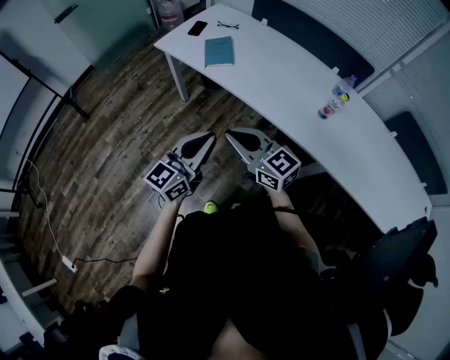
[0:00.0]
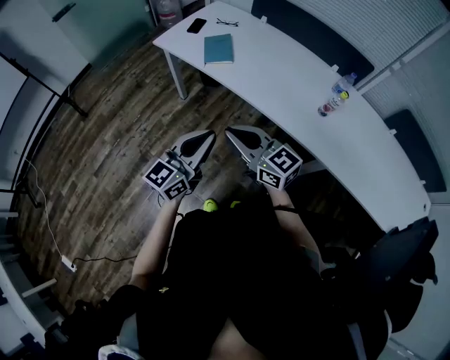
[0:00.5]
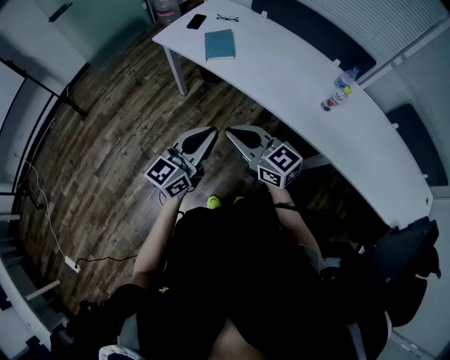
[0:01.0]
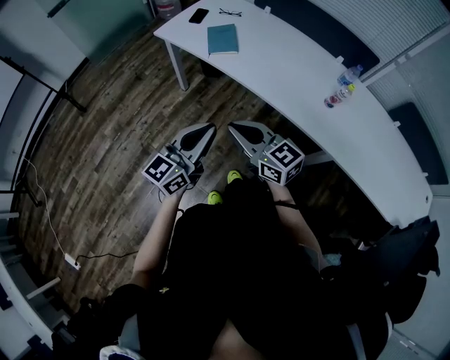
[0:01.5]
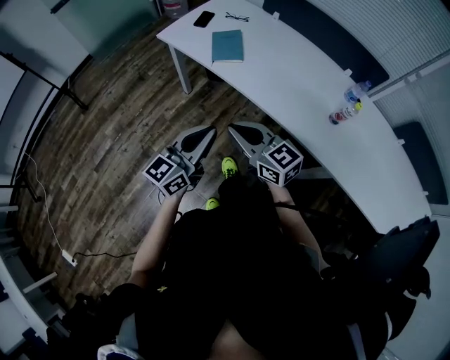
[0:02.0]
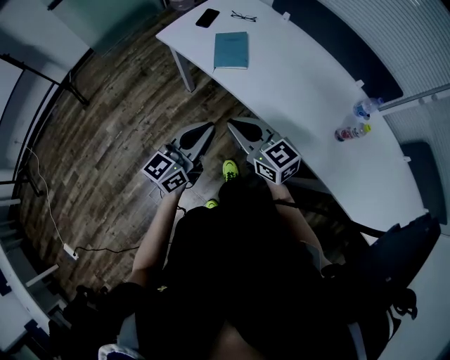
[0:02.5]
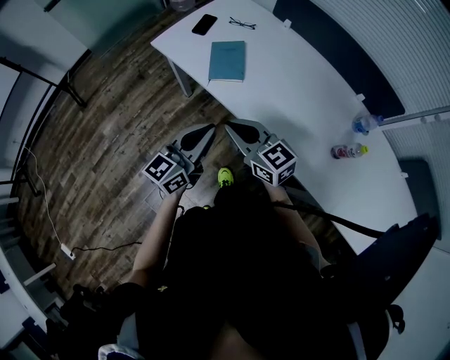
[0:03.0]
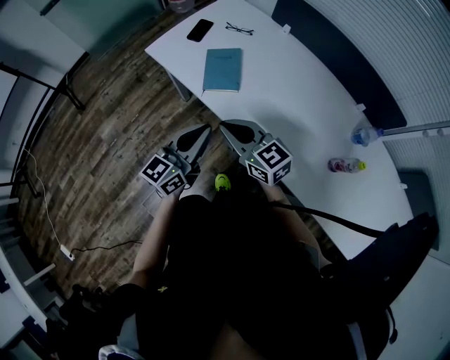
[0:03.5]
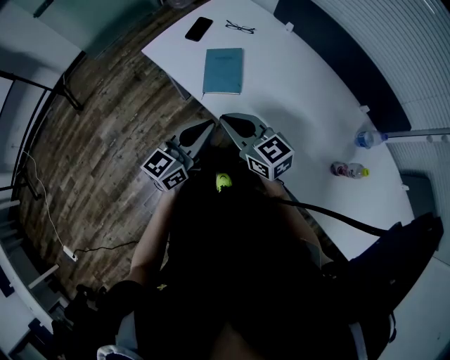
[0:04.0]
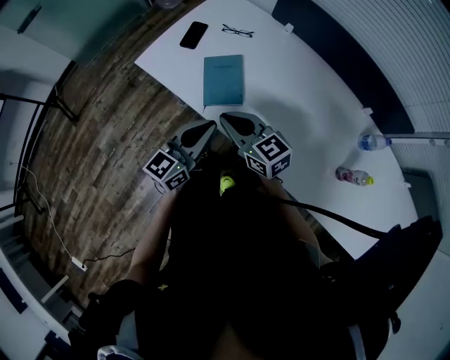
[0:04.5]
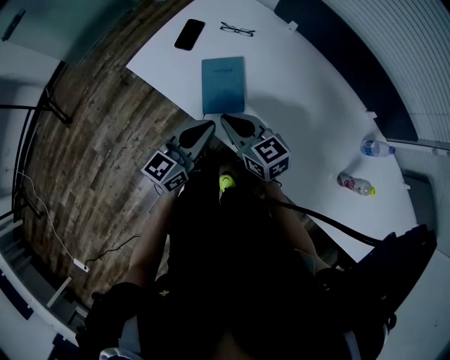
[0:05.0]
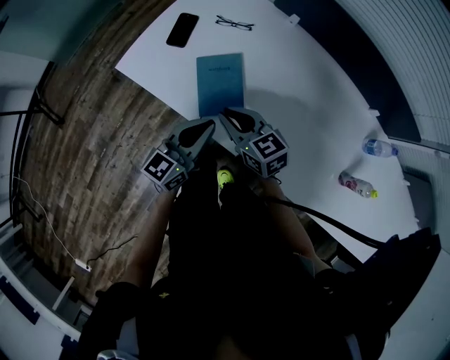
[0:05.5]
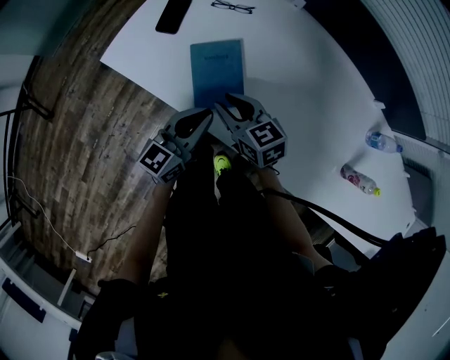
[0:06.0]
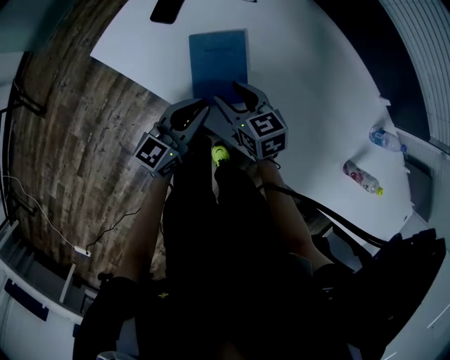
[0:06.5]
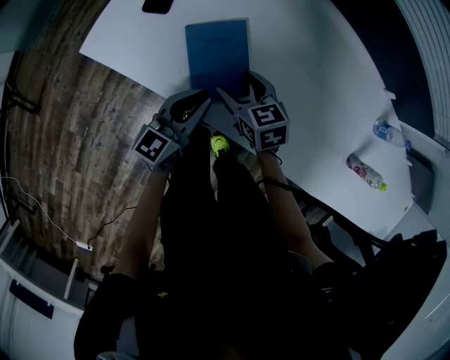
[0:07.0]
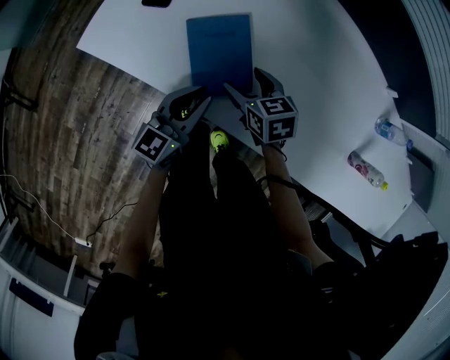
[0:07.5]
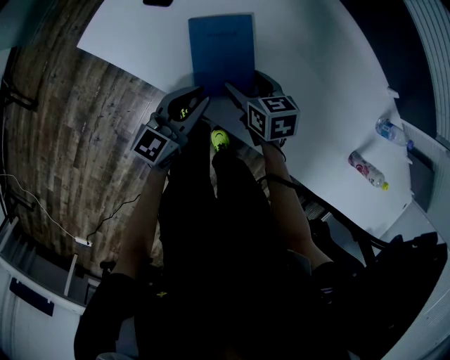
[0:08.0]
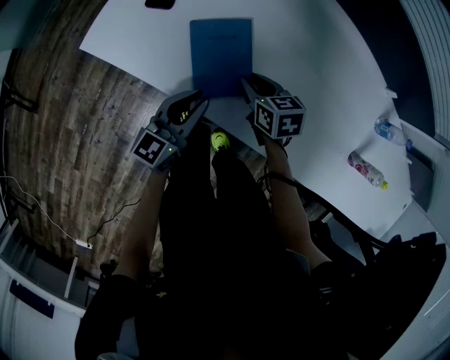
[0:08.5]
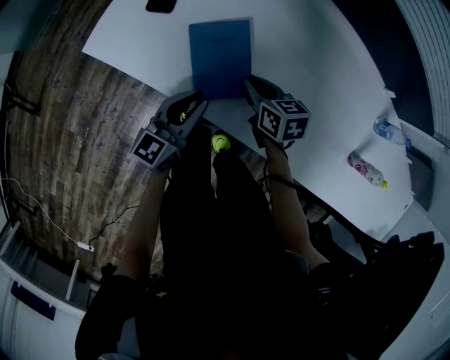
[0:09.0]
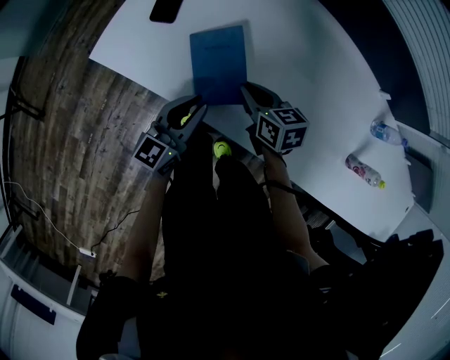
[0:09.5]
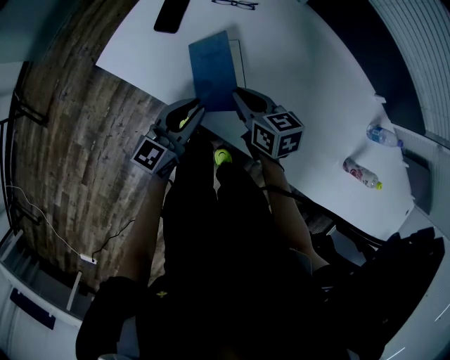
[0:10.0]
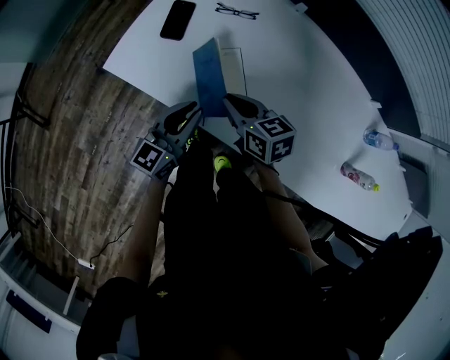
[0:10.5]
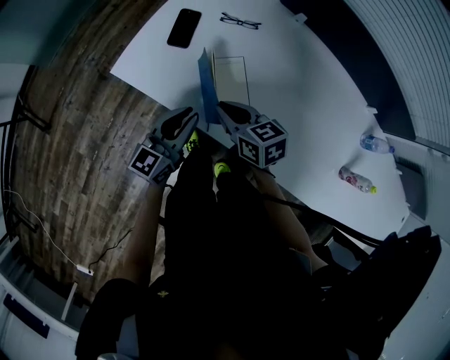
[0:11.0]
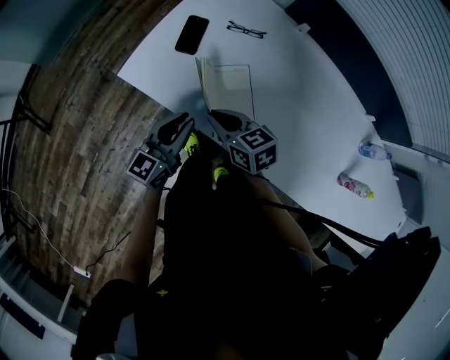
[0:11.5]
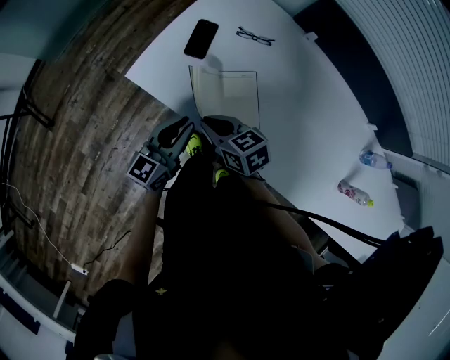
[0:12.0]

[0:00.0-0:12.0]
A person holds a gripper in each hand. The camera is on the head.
0:00.0 to 0:02.0: The two grippers go roughly 5 cm forward.
0:02.0 to 0:04.0: The grippers both shift forward by approximately 25 cm.
0:04.0 to 0:06.0: The two grippers go roughly 20 cm forward and downward. The right gripper rotates about 20 degrees.
0:06.0 to 0:08.0: Both grippers travel together downward, approximately 10 cm. The right gripper rotates some 20 degrees, and opens its fingers.
0:08.0 to 0:10.0: The right gripper goes roughly 10 cm upward, and closes up. Meanwhile the left gripper shifts about 5 cm upward.
0:10.0 to 0:12.0: The right gripper travels to the left by roughly 15 cm; the left gripper is displaced to the left by about 10 cm.

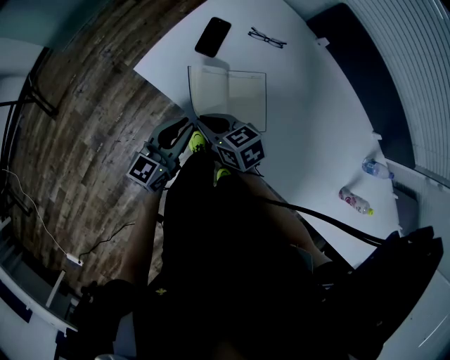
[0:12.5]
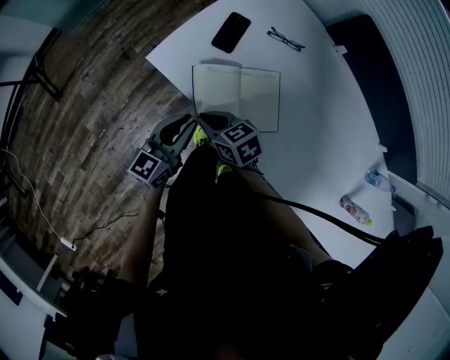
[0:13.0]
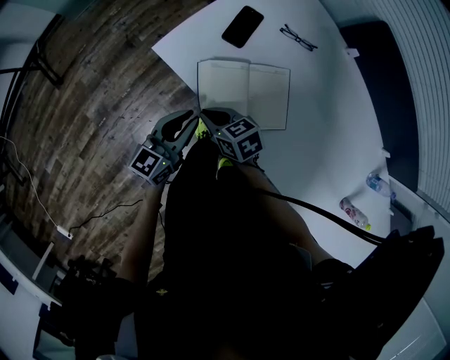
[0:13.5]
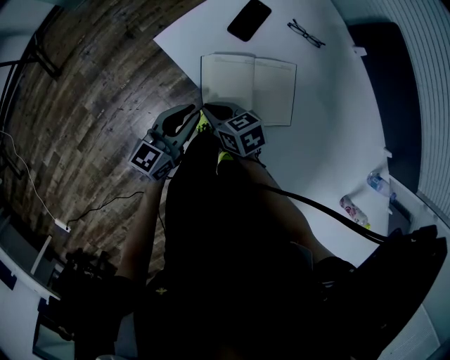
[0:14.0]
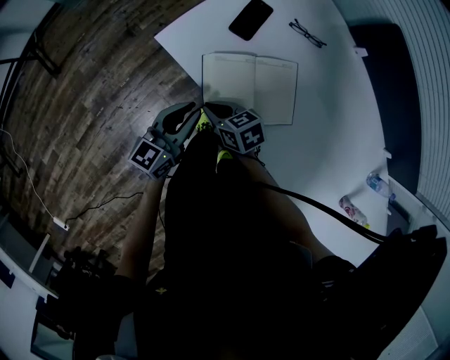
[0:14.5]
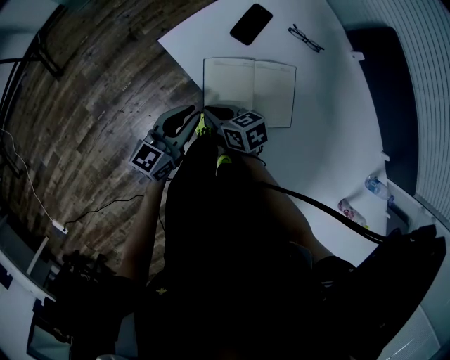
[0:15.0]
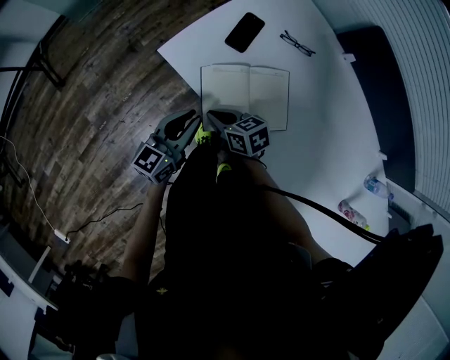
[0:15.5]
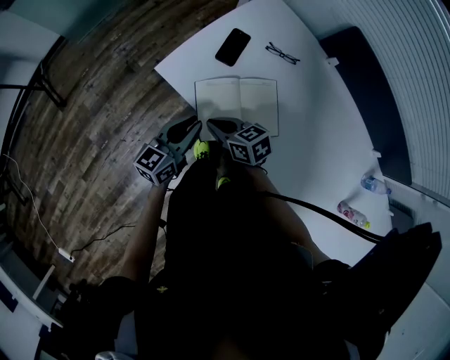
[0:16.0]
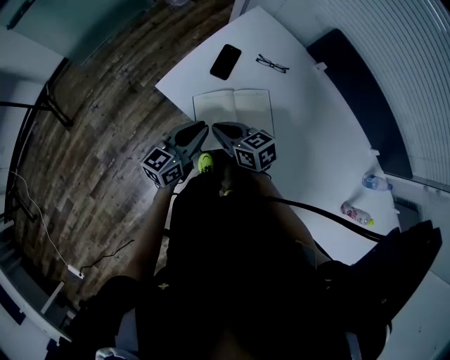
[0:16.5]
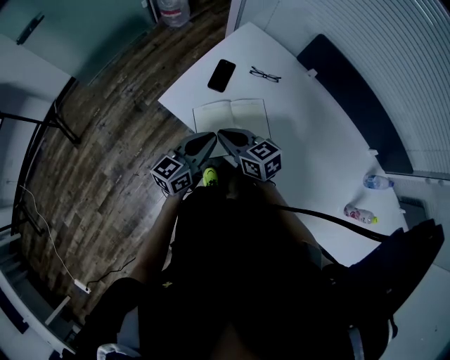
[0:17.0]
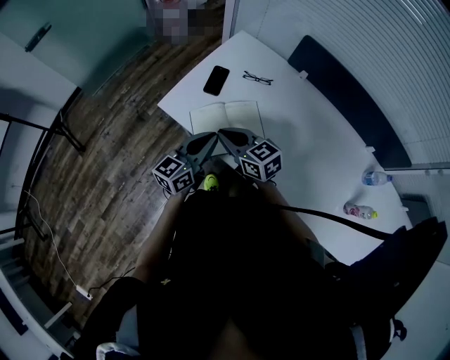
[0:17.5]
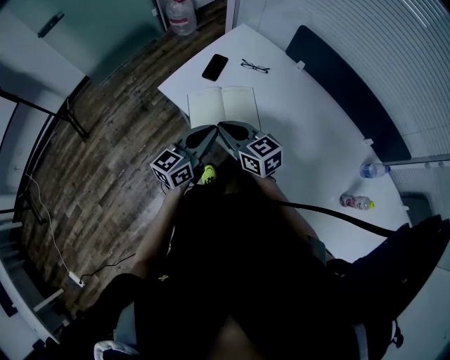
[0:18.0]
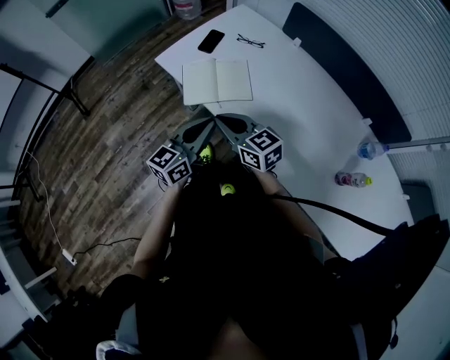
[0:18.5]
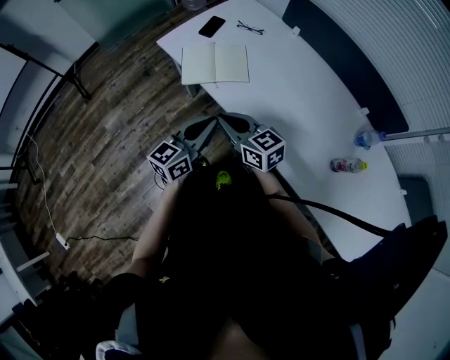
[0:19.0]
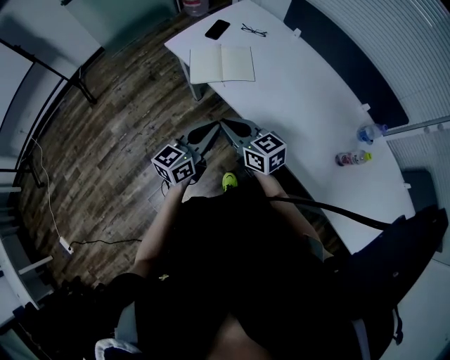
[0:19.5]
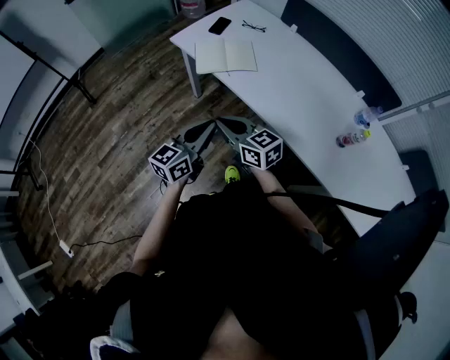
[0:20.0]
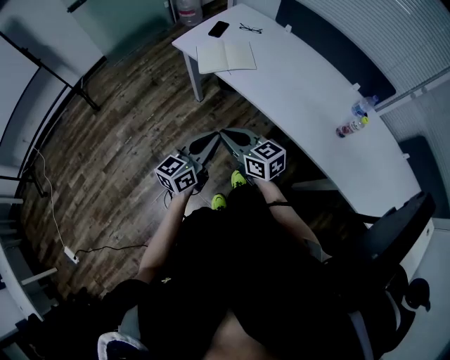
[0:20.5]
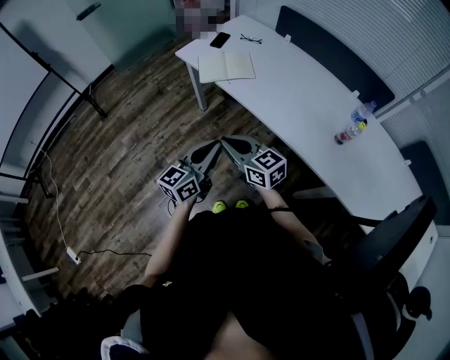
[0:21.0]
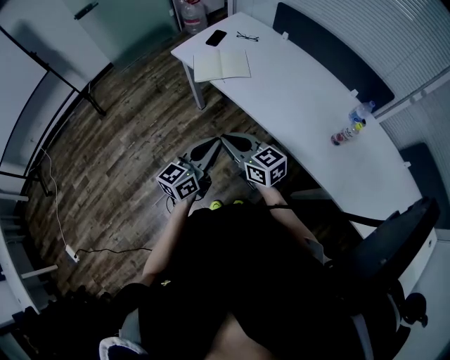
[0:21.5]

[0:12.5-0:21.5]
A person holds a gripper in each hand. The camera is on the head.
0:12.5 to 0:14.5: The left gripper ends up roughly 5 cm from where it was. The right gripper shifts some 10 cm downward.
0:14.5 to 0:17.0: The right gripper is displaced upward by roughly 15 cm, and swivels about 30 degrees, while the left gripper goes some 10 cm upward and to the right.
0:17.0 to 0:19.5: Both grippers travel together backward, roughly 30 cm.
0:19.5 to 0:21.5: Both grippers travel together backward, approximately 15 cm.

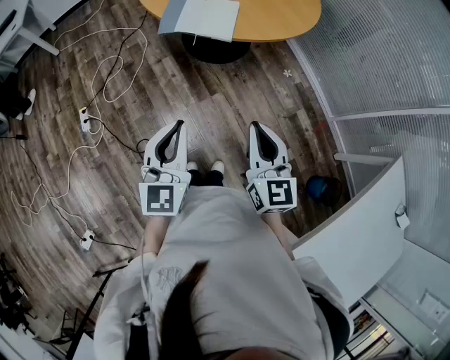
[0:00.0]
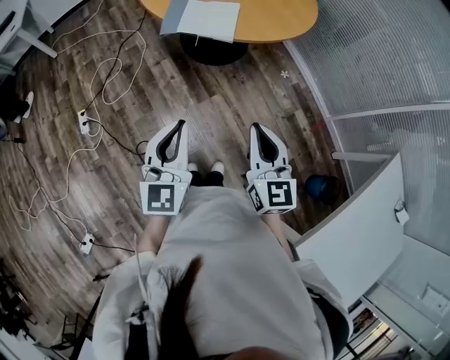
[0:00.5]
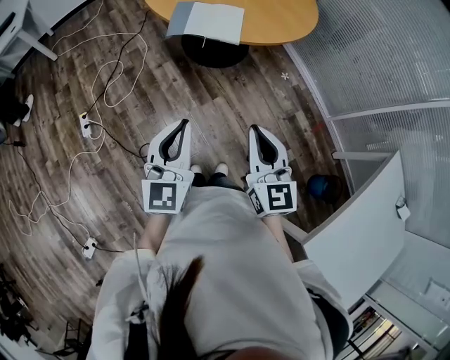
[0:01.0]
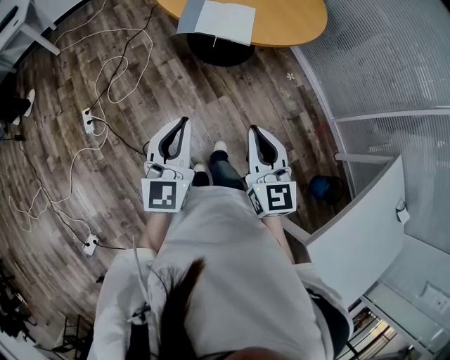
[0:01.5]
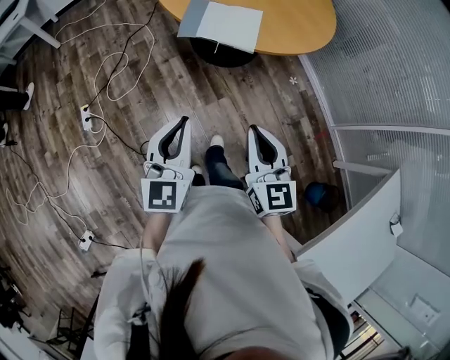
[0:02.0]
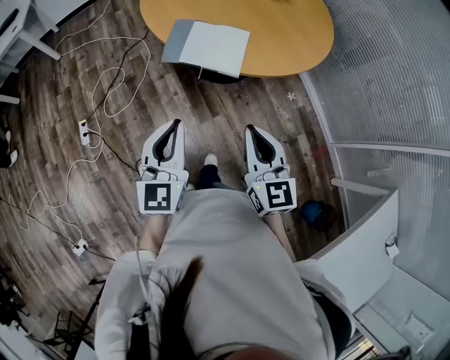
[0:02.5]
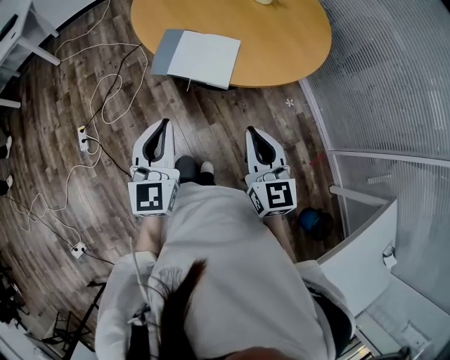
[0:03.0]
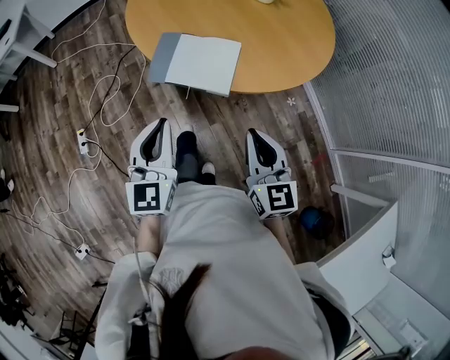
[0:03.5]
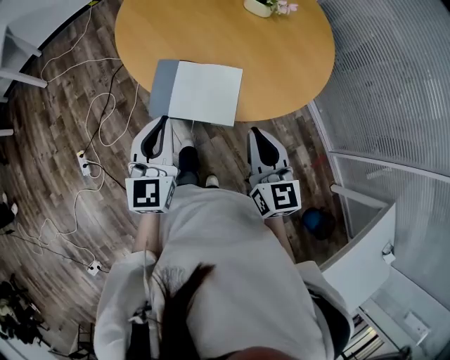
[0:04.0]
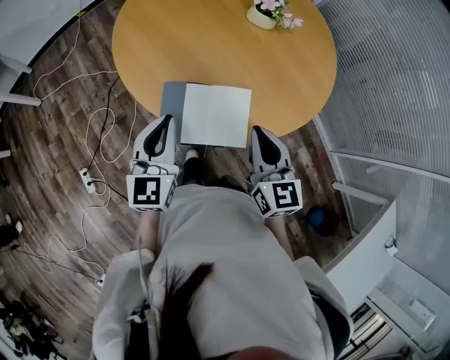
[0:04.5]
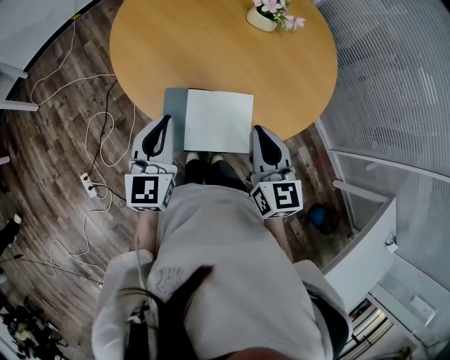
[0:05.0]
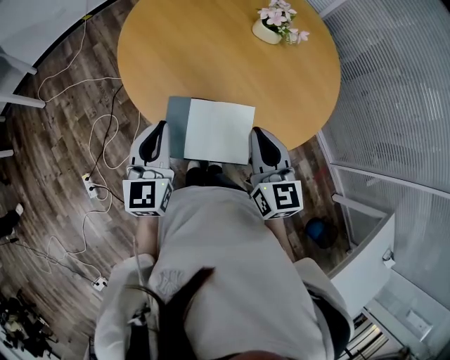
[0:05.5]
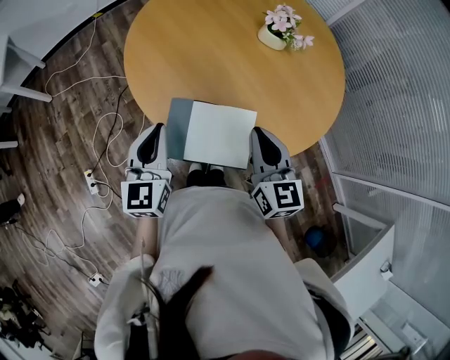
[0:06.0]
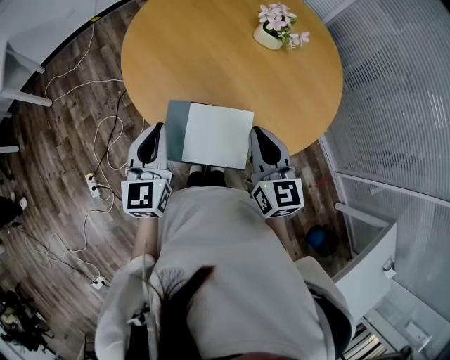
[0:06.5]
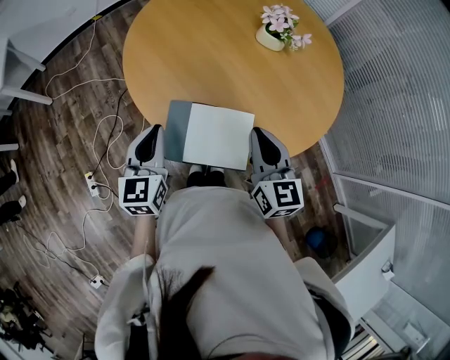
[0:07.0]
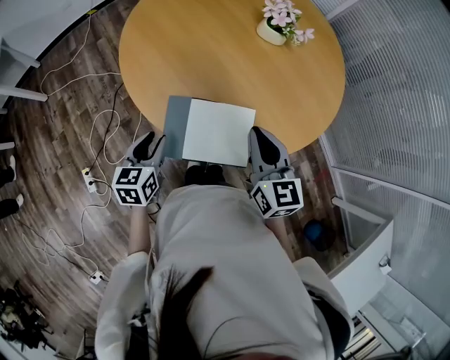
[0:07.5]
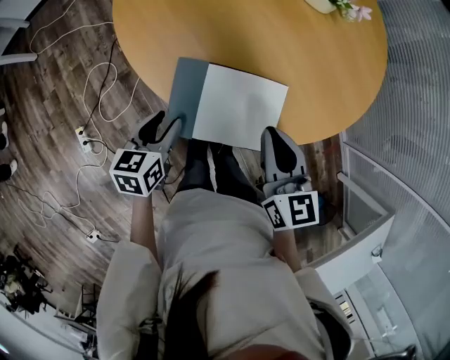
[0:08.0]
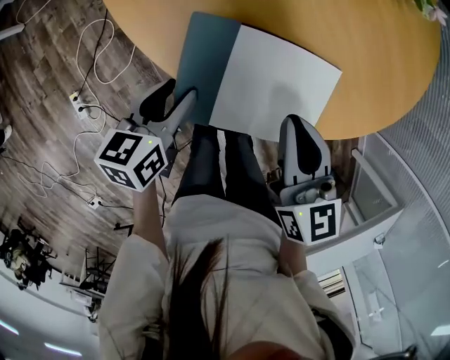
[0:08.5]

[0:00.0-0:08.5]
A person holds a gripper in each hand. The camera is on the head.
0:00.0 to 0:02.0: The right gripper goes some 10 cm to the left. Meanwhile the left gripper goes approximately 10 cm to the left and forward.
0:02.0 to 0:04.0: The two grippers go roughly 30 cm forward.
0:04.0 to 0:06.5: The right gripper heads forward, covering some 15 cm, while the left gripper travels forward and to the left by approximately 15 cm.
0:06.5 to 0:08.5: The left gripper shifts roughly 25 cm downward, swivels about 50 degrees, and opens its fingers. Meanwhile the right gripper heads downward and to the left, covering roughly 15 cm.
